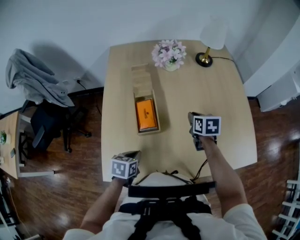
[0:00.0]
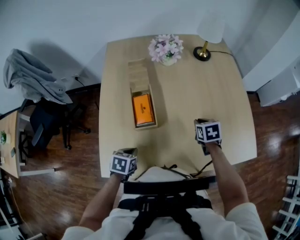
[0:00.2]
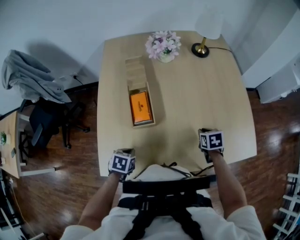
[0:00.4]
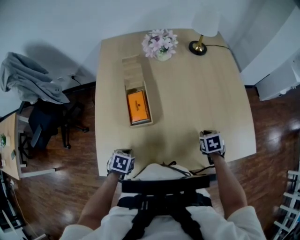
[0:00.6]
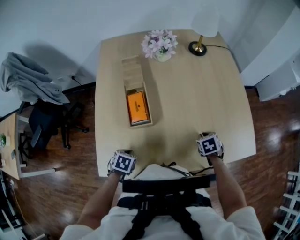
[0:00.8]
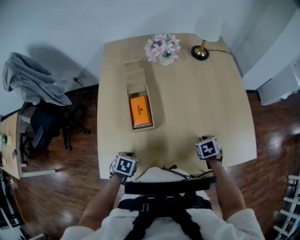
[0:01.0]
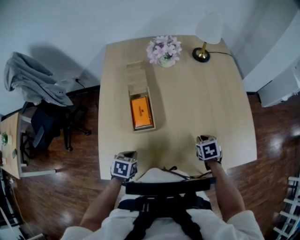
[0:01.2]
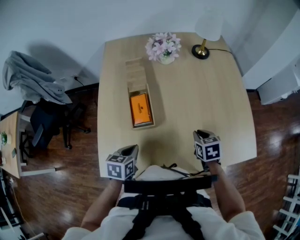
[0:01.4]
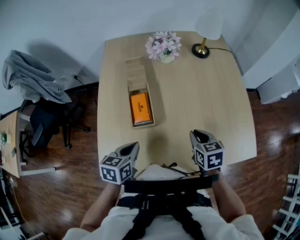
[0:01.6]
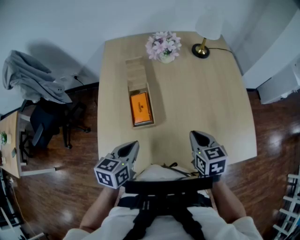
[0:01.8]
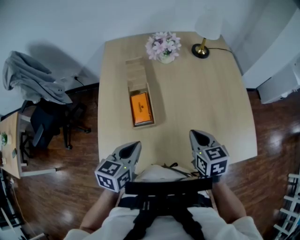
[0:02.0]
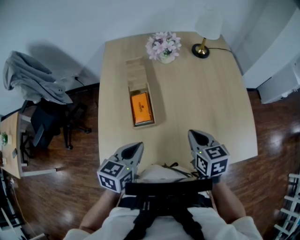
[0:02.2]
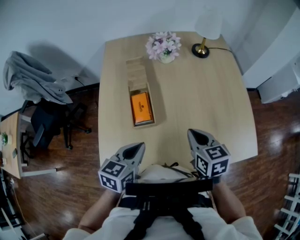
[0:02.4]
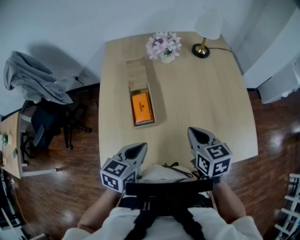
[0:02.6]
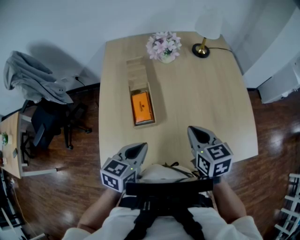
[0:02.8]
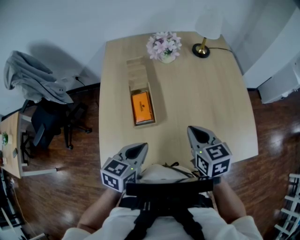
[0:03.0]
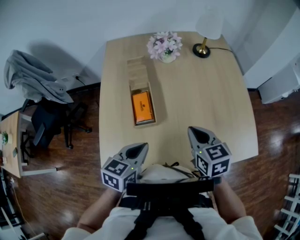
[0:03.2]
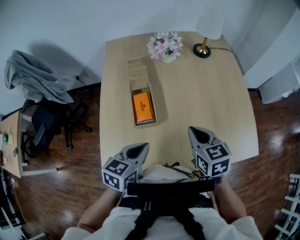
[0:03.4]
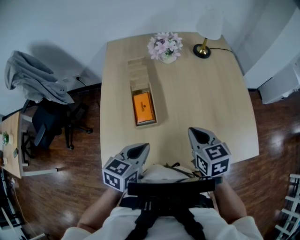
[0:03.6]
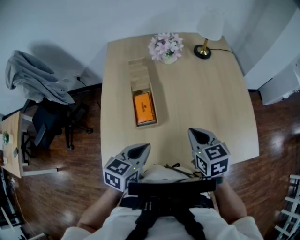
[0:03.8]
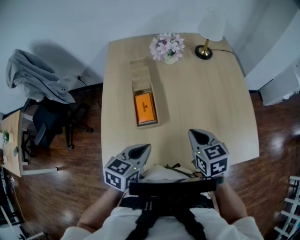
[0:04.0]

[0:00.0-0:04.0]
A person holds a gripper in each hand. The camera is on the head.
0:00.0 to 0:01.4: The right gripper travels downward and back again, roughly 10 cm each way, while the left gripper reaches approximately 5 cm downward, then returns.
0:01.4 to 0:02.6: The left gripper moves upward and to the right, approximately 10 cm. Meanwhile the right gripper heads upward and to the left, covering approximately 15 cm, and rotates some 20 degrees.
0:02.6 to 0:04.0: The grippers move only a little.

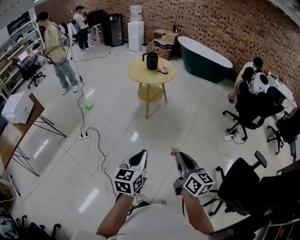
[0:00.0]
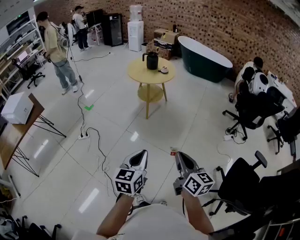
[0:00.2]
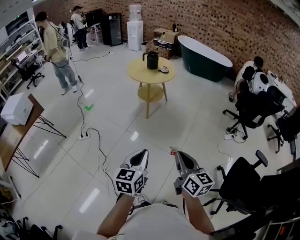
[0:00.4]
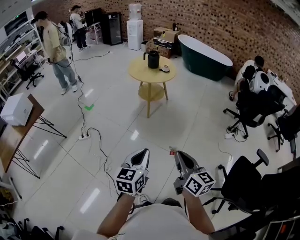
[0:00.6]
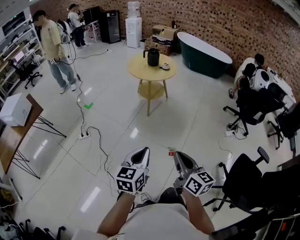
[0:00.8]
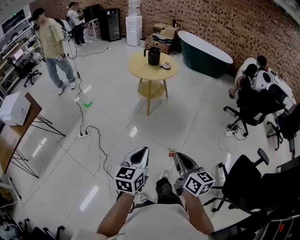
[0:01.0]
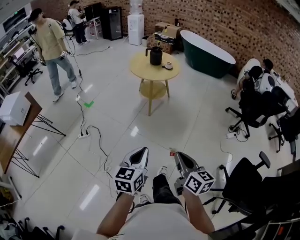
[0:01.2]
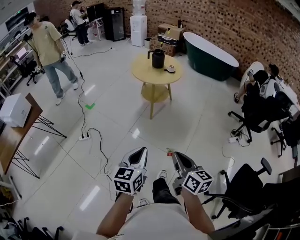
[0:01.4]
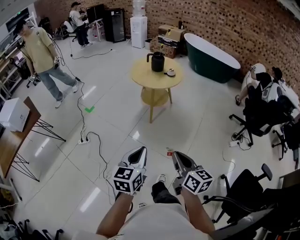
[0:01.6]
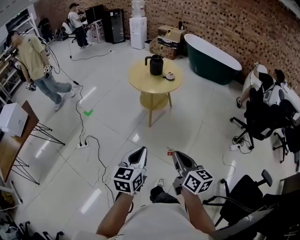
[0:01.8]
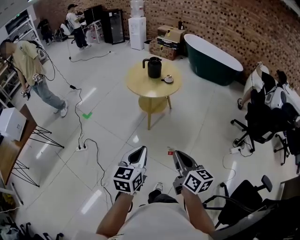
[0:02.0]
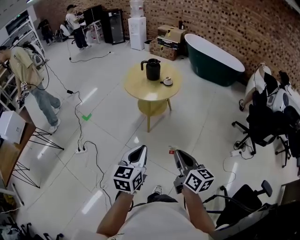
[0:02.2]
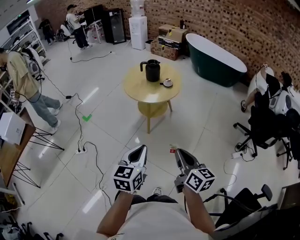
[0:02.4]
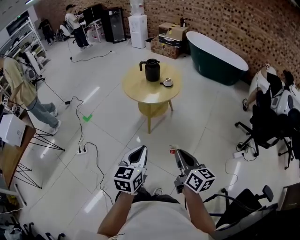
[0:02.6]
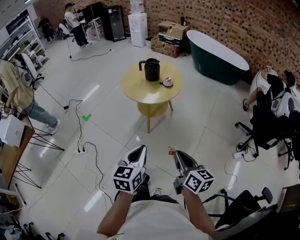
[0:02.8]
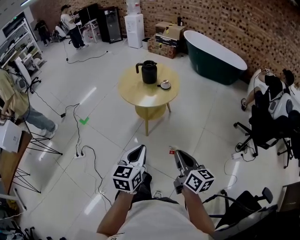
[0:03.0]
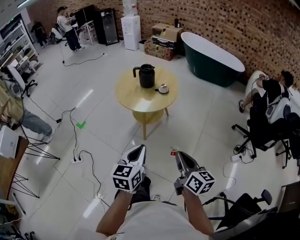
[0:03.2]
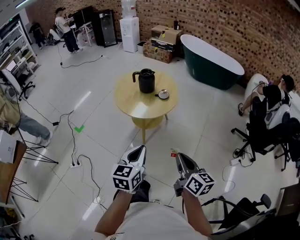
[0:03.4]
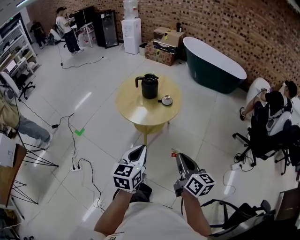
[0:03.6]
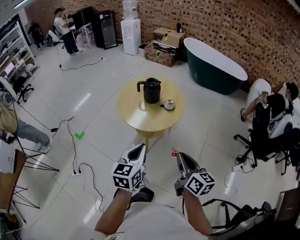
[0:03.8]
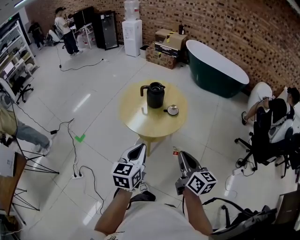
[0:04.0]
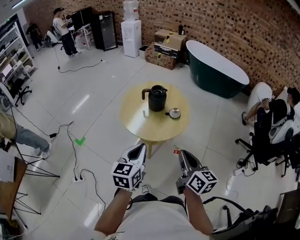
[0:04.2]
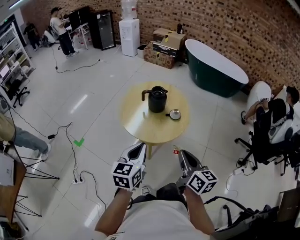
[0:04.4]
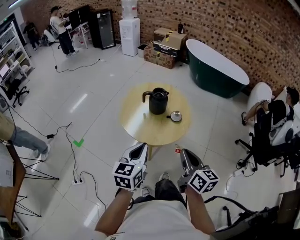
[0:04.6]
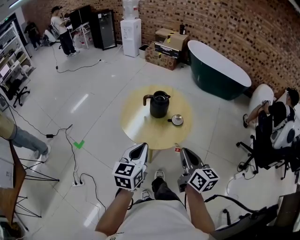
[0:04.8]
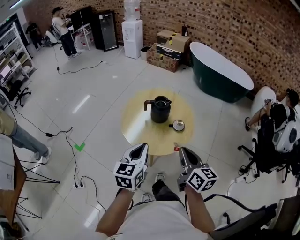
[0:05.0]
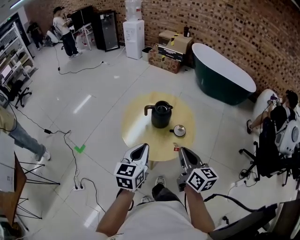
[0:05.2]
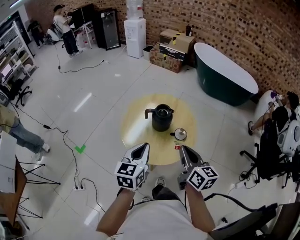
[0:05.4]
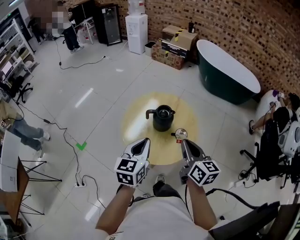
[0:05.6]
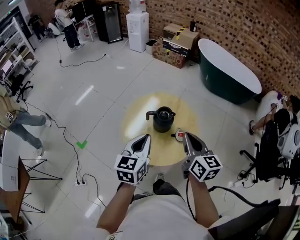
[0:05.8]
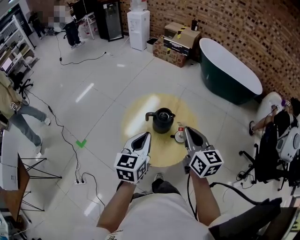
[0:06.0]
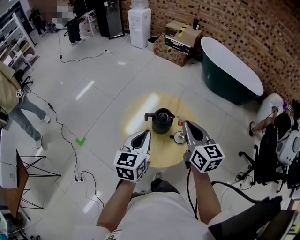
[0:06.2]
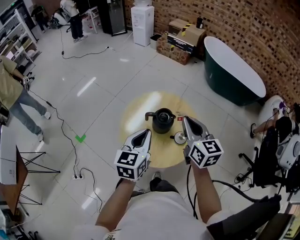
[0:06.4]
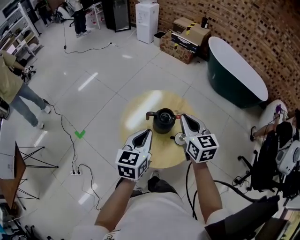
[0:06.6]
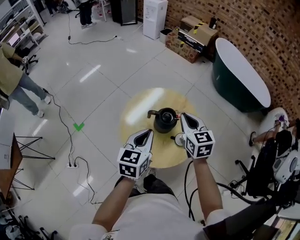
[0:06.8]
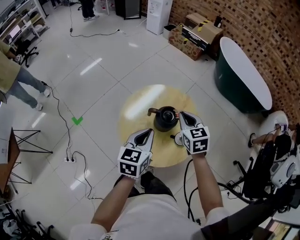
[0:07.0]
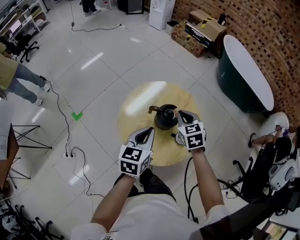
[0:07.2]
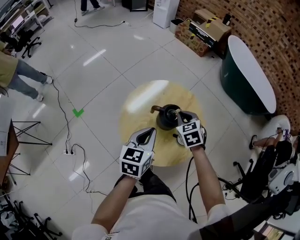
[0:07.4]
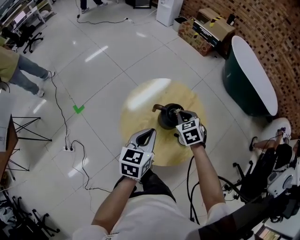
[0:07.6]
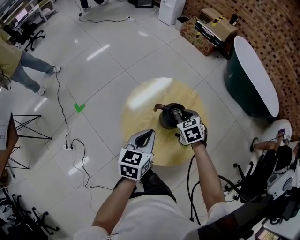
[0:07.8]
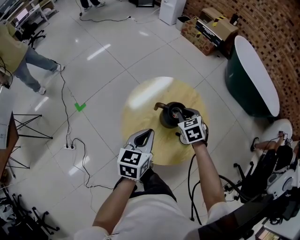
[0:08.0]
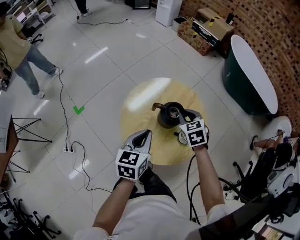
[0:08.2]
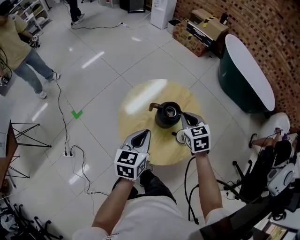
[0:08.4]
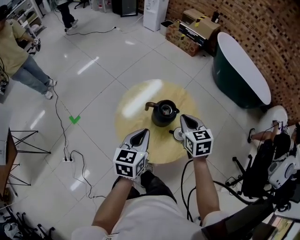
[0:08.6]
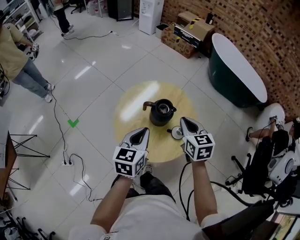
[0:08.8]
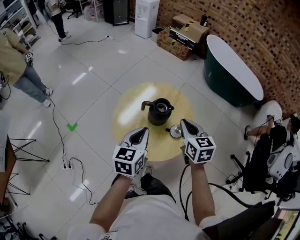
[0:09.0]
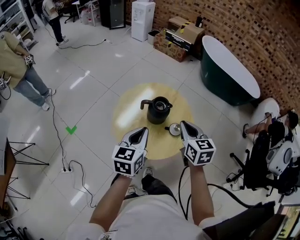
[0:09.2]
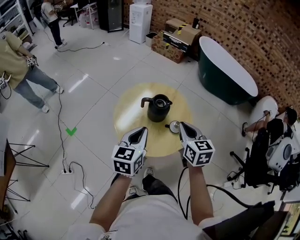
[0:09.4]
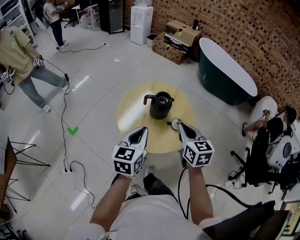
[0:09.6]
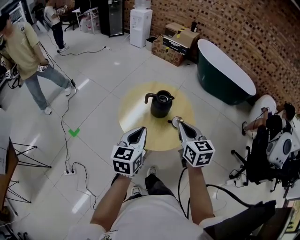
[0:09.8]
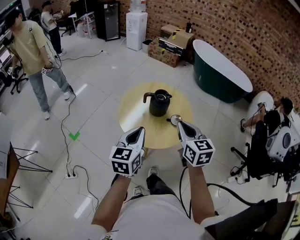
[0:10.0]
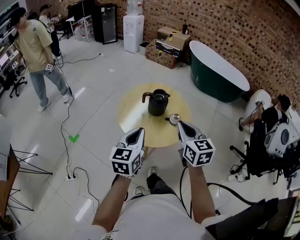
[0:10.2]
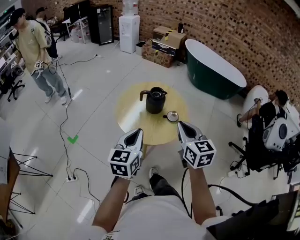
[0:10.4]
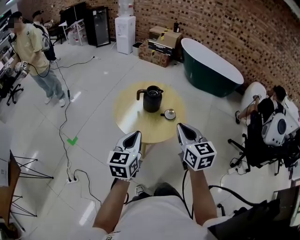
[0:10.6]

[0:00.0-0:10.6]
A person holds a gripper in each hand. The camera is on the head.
0:00.0 to 0:01.6: The two grippers go about 15 cm forward.
0:01.6 to 0:03.0: Both grippers travel together forward and to the right, approximately 25 cm.
0:03.0 to 0:04.6: Both grippers move forward, approximately 30 cm.
0:04.6 to 0:06.0: Both grippers travel together forward, some 25 cm.
0:06.0 to 0:07.6: The left gripper is displaced downward and forward by about 10 cm, while the right gripper travels downward and forward by roughly 25 cm, and tips its fingers downward by approximately 40 degrees.
0:07.6 to 0:09.0: The right gripper heads upward, backward and to the right, covering roughly 15 cm, and swivels some 40 degrees.
0:09.0 to 0:10.6: The two grippers go approximately 20 cm backward.

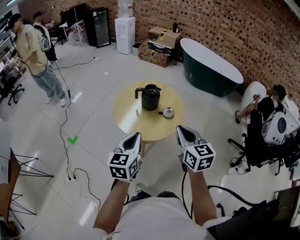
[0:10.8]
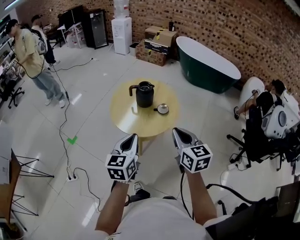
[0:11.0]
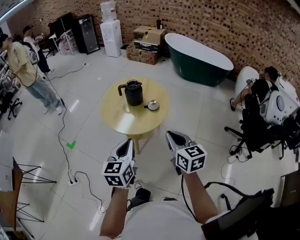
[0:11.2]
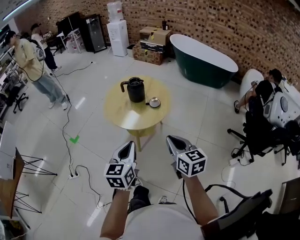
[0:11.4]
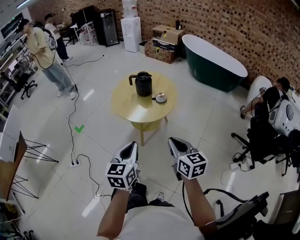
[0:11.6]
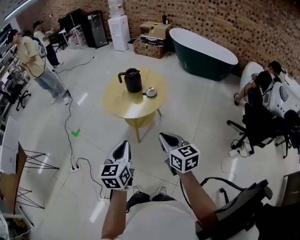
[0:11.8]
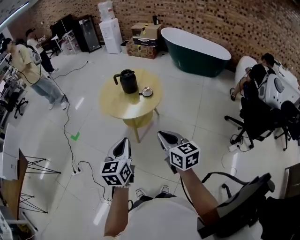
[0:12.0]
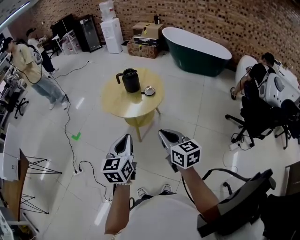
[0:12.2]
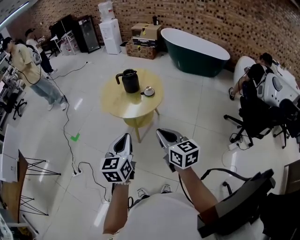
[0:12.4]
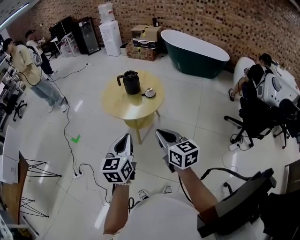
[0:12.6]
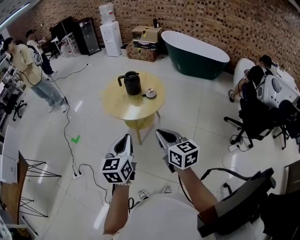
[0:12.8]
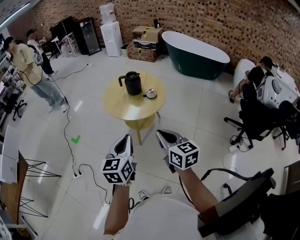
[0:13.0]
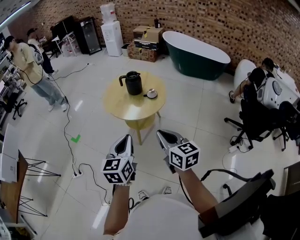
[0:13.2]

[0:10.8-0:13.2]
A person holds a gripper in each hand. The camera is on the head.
0:10.8 to 0:12.0: Both grippers move backward, some 20 cm.
0:12.0 to 0:13.2: The right gripper changes place by roughly 5 cm.

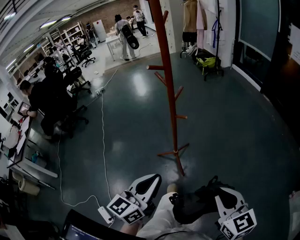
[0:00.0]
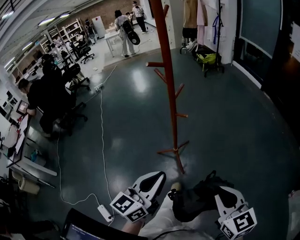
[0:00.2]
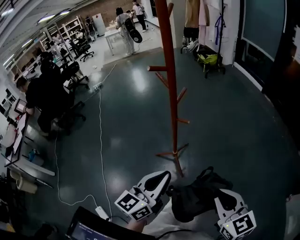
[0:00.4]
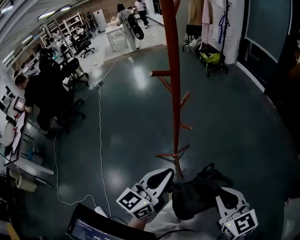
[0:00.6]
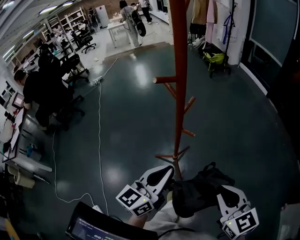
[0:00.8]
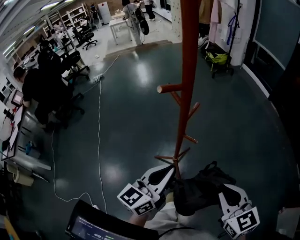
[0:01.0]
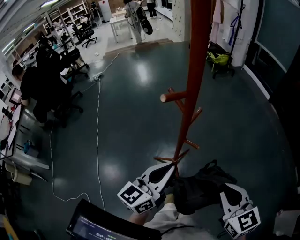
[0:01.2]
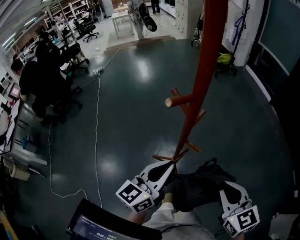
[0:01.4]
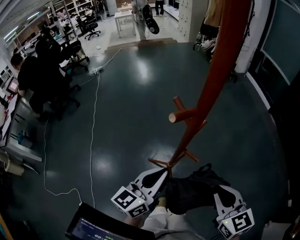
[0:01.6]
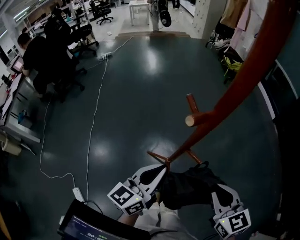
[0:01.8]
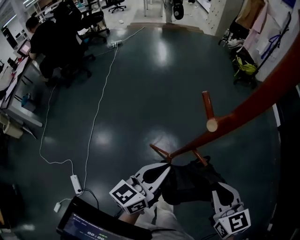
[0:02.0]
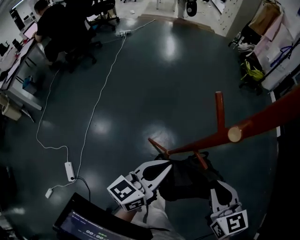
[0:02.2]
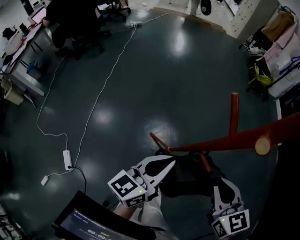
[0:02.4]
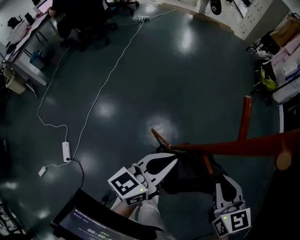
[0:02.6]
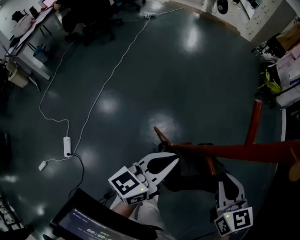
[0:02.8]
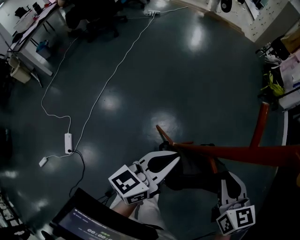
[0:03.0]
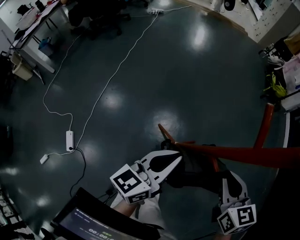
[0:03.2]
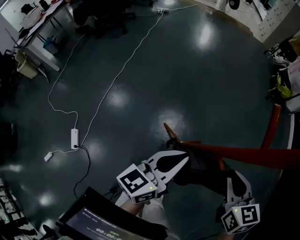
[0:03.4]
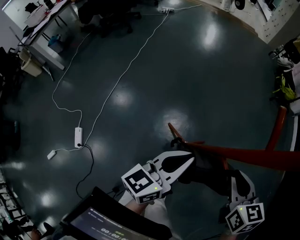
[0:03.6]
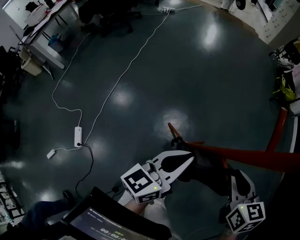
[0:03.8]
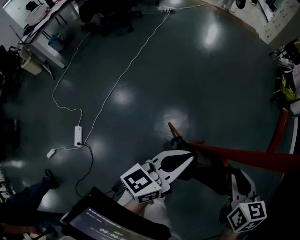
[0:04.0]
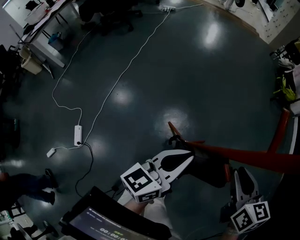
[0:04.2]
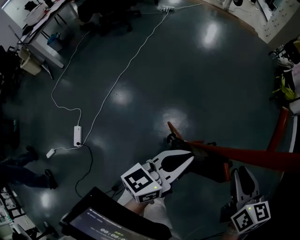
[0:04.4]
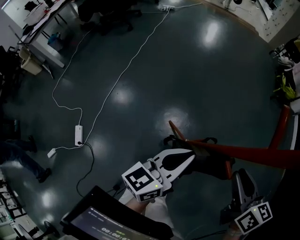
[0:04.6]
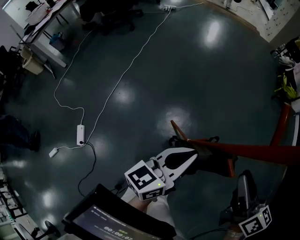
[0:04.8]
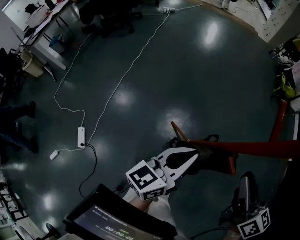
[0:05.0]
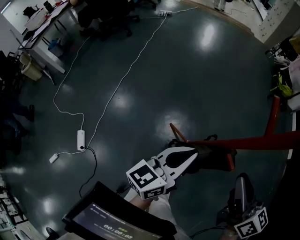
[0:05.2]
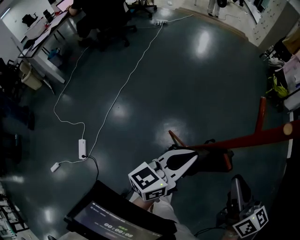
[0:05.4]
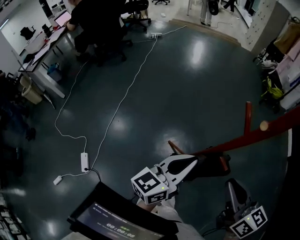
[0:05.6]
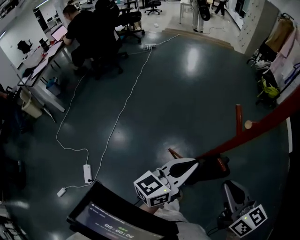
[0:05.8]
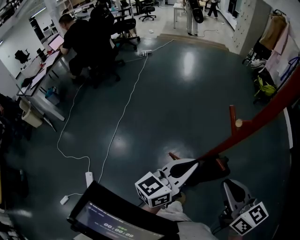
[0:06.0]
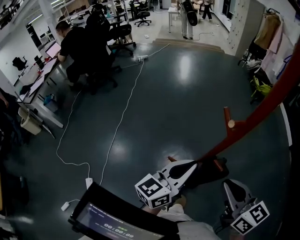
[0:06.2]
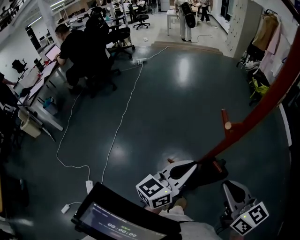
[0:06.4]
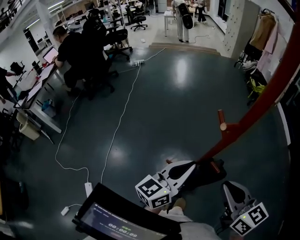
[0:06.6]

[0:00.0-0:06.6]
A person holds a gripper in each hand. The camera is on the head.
0:00.0 to 0:01.6: Both grippers move forward, roughly 30 cm.
0:01.6 to 0:03.2: The right gripper is displaced forward and downward by some 20 cm. Meanwhile the left gripper is displaced downward, forward and to the left by about 10 cm, and changes its angle by roughly 20 degrees.
0:03.2 to 0:05.0: The right gripper moves upward, about 5 cm, and changes its angle by approximately 30 degrees.
0:05.0 to 0:06.6: The left gripper shifts about 10 cm upward, while the right gripper shifts approximately 10 cm backward and upward.
